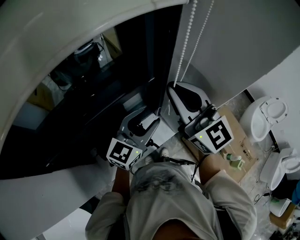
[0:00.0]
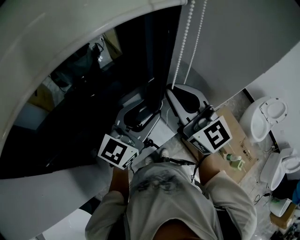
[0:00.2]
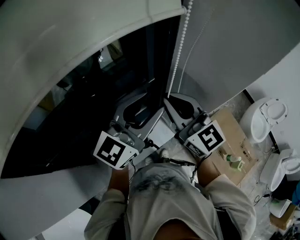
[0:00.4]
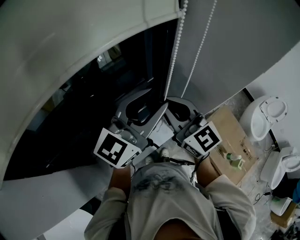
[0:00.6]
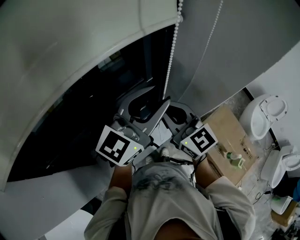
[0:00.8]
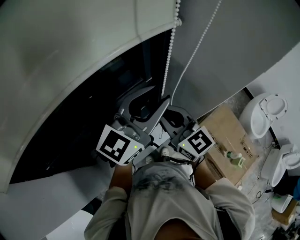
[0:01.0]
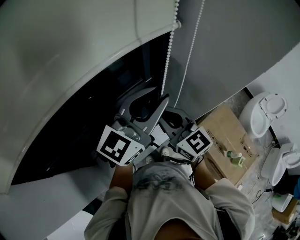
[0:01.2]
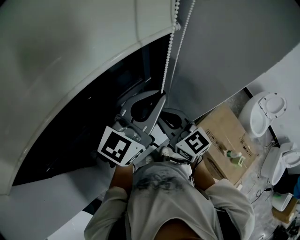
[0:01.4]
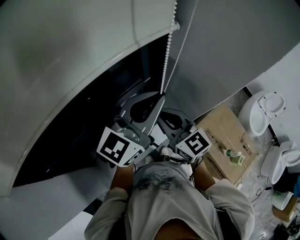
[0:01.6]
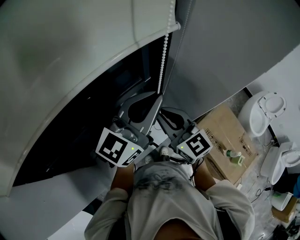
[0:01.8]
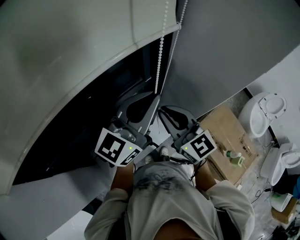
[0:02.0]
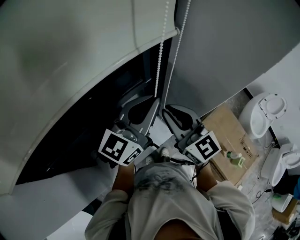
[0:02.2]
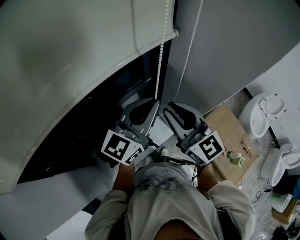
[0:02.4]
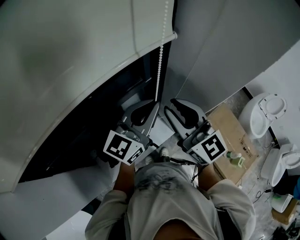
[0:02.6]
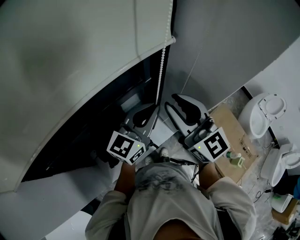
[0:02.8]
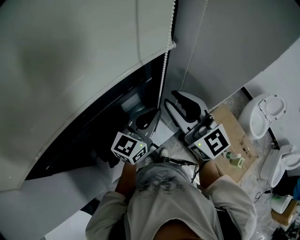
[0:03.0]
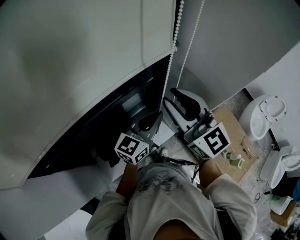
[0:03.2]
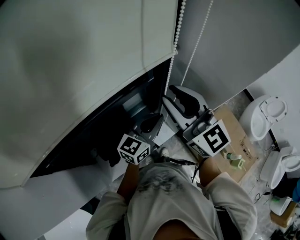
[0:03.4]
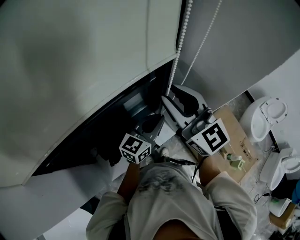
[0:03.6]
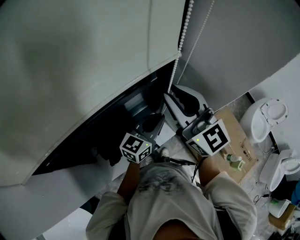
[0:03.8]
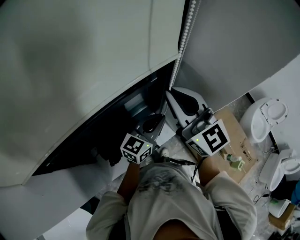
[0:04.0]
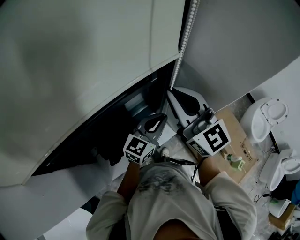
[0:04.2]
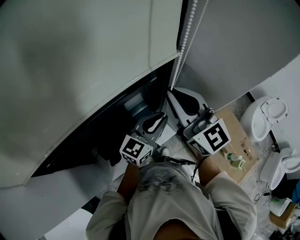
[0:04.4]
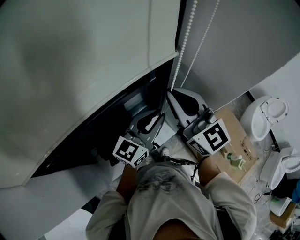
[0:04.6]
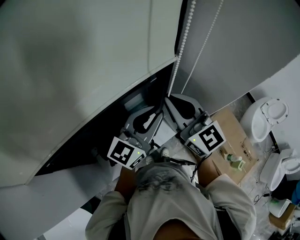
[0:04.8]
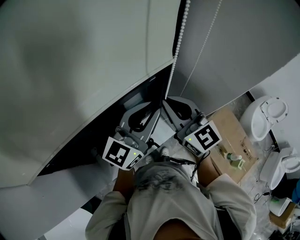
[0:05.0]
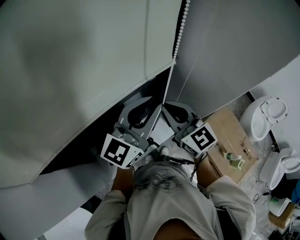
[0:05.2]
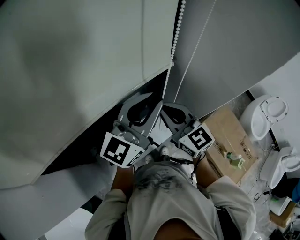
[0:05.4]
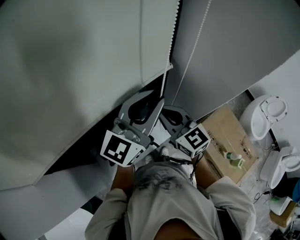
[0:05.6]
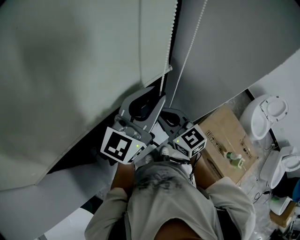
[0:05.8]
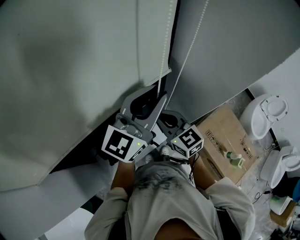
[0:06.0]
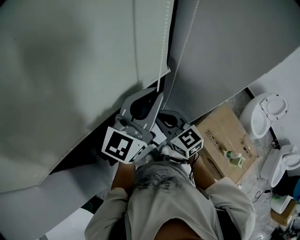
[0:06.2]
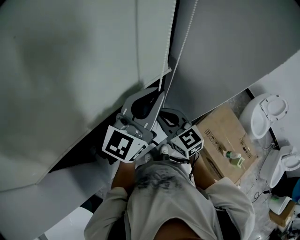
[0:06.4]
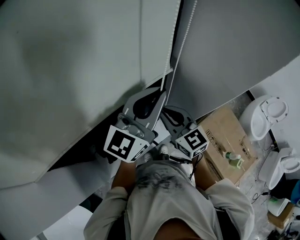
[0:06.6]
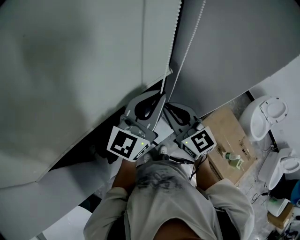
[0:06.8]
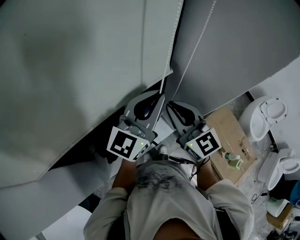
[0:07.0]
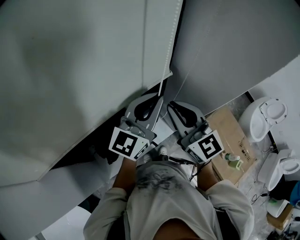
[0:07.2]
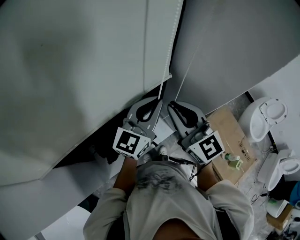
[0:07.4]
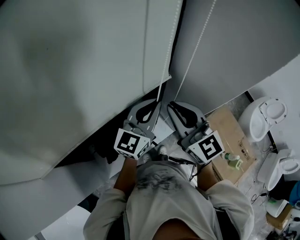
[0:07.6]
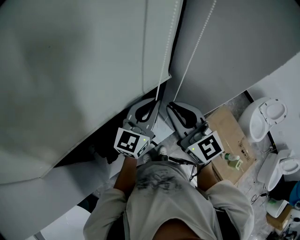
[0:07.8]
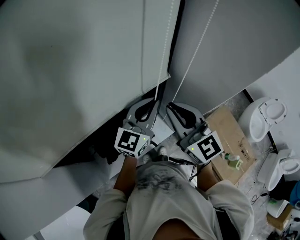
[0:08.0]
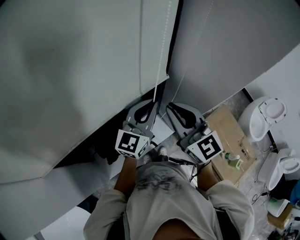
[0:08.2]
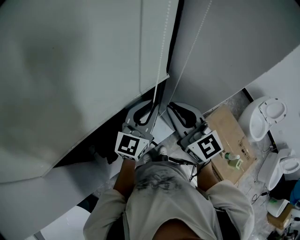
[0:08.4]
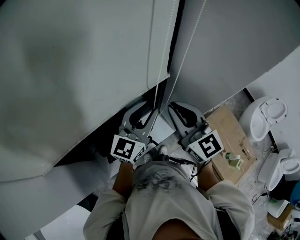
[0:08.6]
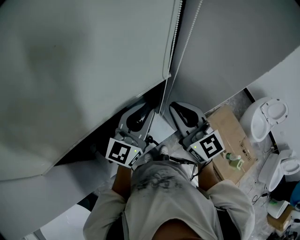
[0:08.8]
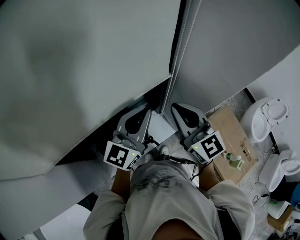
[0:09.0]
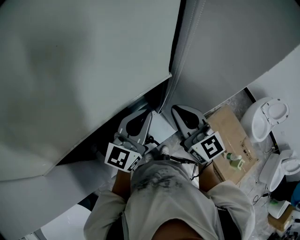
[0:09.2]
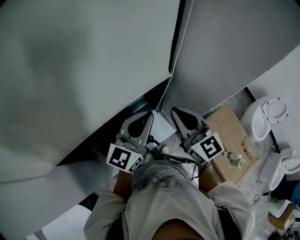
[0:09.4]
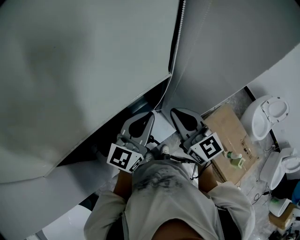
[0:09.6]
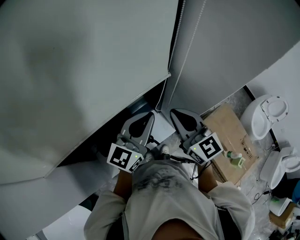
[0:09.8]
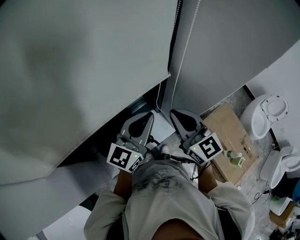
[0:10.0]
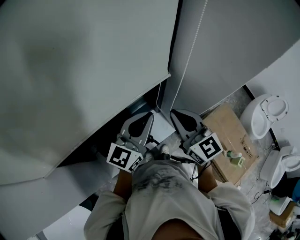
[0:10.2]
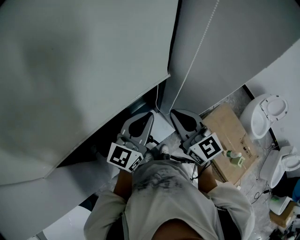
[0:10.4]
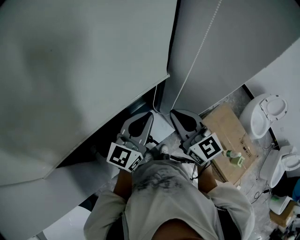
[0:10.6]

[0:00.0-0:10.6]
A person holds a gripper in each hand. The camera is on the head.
0.0 to 1.6 s: The right gripper shifts about 15 cm downward. Meanwhile the left gripper moves upward, about 15 cm, and closes up.
1.6 to 3.0 s: The left gripper is displaced downward by roughly 15 cm, while the right gripper travels upward by roughly 10 cm, and opens up.
3.0 to 4.6 s: The right gripper closes.
4.6 to 6.0 s: The left gripper moves upward, about 10 cm. The right gripper travels downward by approximately 15 cm, and swivels approximately 20 degrees.
6.0 to 7.6 s: The left gripper moves downward, roughly 10 cm; the right gripper goes approximately 10 cm upward.
7.6 to 9.0 s: The left gripper moves approximately 5 cm, and opens, then closes once more.
9.0 to 10.6 s: The grippers make only small movements.

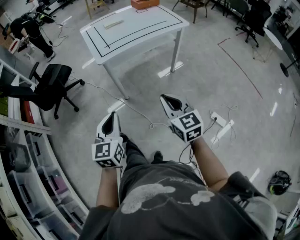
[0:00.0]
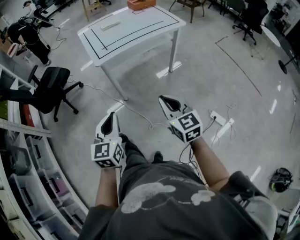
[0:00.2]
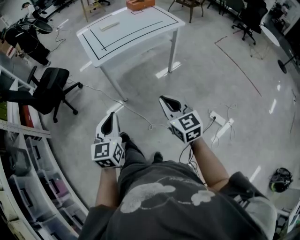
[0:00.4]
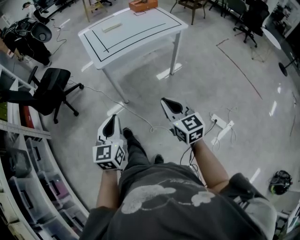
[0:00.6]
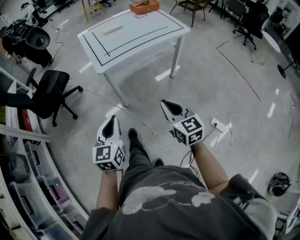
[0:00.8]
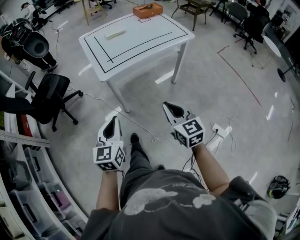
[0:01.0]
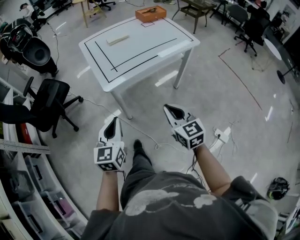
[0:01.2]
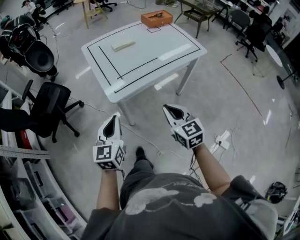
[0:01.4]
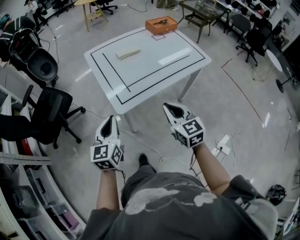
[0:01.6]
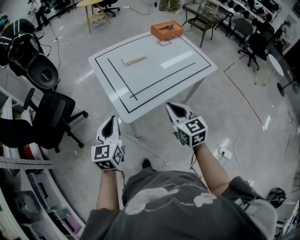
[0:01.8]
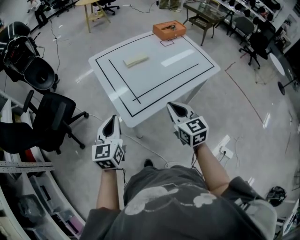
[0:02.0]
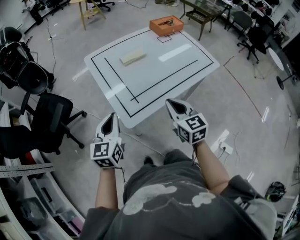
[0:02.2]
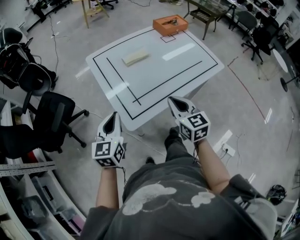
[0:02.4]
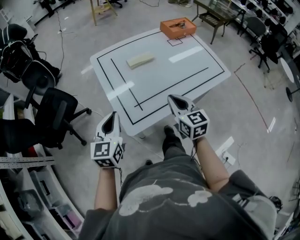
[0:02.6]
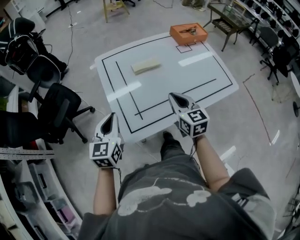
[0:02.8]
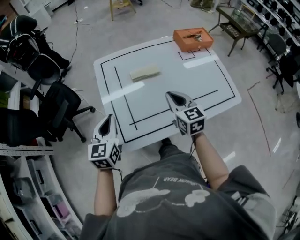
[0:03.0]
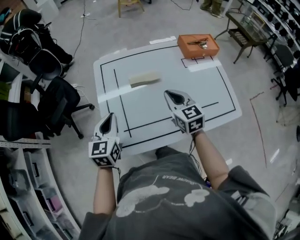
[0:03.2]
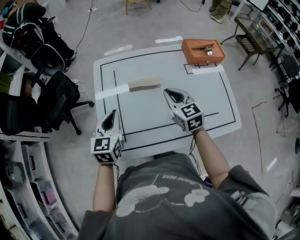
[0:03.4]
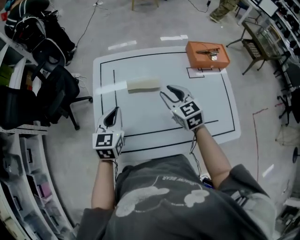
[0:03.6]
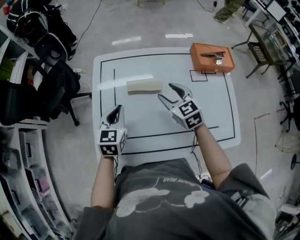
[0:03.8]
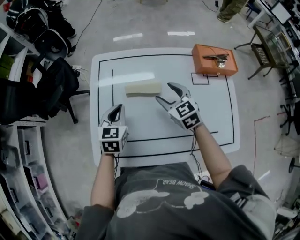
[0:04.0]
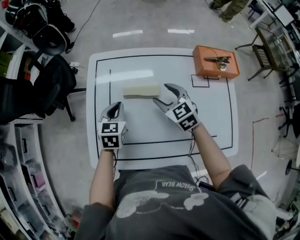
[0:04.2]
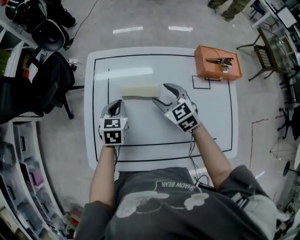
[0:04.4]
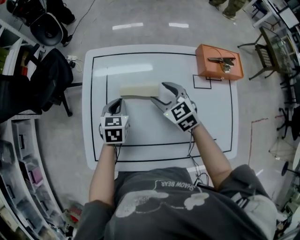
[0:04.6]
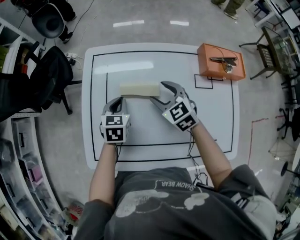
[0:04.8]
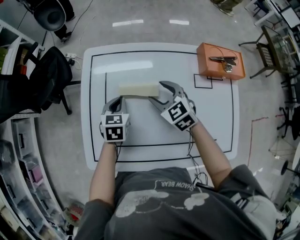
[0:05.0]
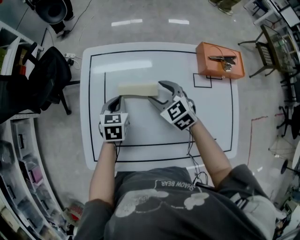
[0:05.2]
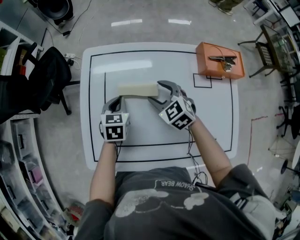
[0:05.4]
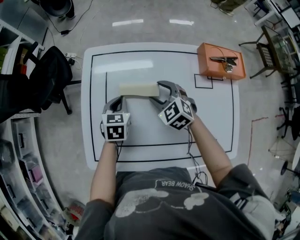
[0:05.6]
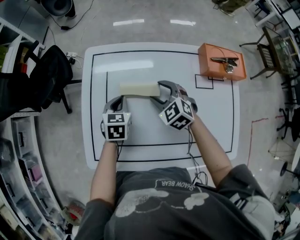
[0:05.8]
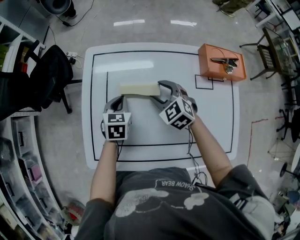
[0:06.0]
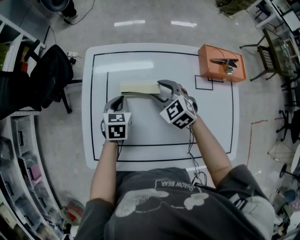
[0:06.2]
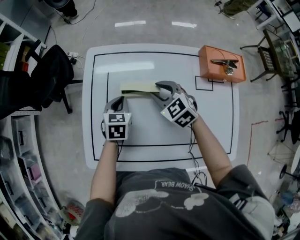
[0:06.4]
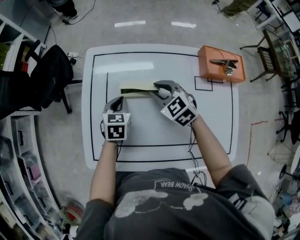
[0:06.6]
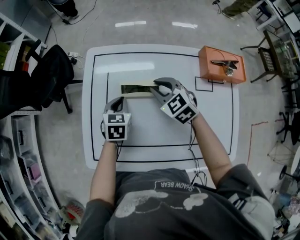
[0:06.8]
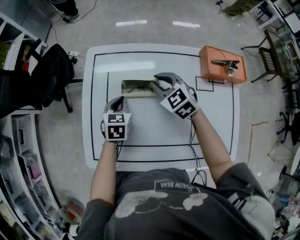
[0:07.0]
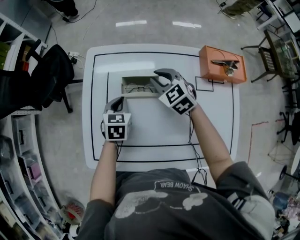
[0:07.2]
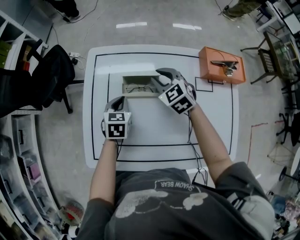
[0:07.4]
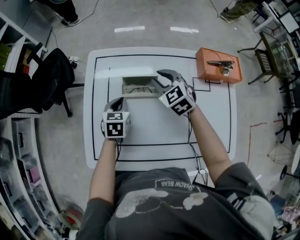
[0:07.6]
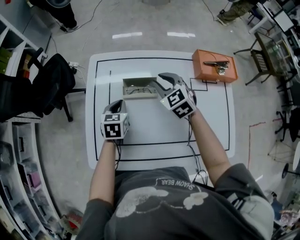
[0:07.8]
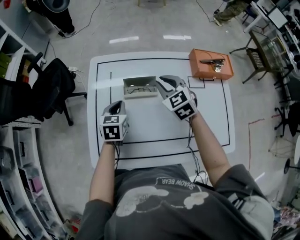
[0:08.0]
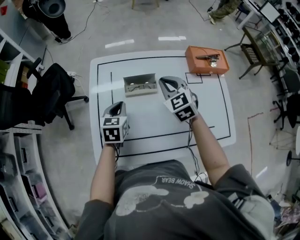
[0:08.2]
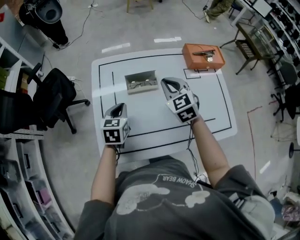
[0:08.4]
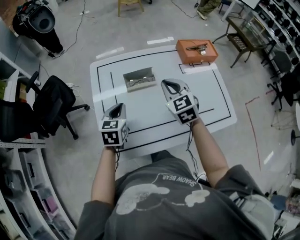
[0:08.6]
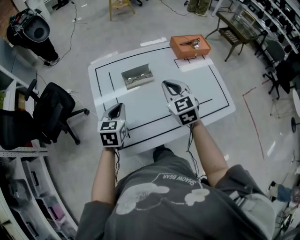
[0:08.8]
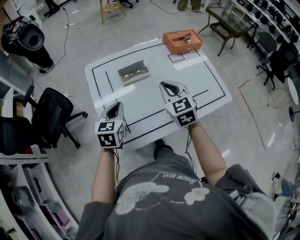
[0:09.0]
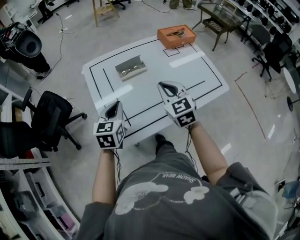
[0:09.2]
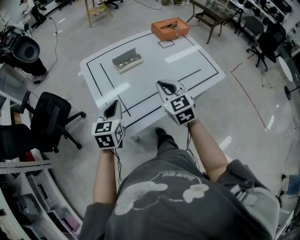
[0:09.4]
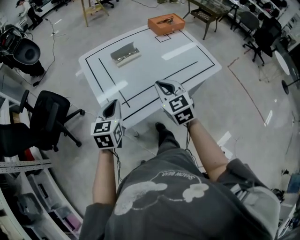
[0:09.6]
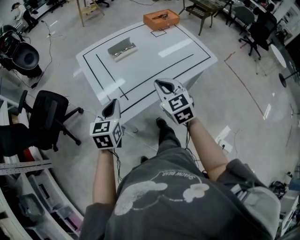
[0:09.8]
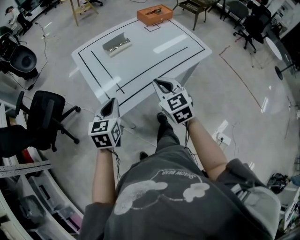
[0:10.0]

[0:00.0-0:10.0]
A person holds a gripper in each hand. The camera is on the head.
0.0 to 1.4 s: The grippers both shift forward by some 25 cm.
1.4 to 2.8 s: Both grippers move forward, roughly 30 cm.
2.8 to 4.2 s: The right gripper moves approximately 25 cm, turns by approximately 40 degrees, and opens its fingers; the left gripper changes place by approximately 25 cm, and changes its angle by about 30 degrees.
4.2 to 5.8 s: The right gripper changes place by some 5 cm, while the left gripper moves downward, roughly 5 cm.
5.8 to 7.2 s: The right gripper shifts some 5 cm forward, and closes its fingers.
7.2 to 8.6 s: The left gripper heads upward and backward, covering about 15 cm. Meanwhile the right gripper shifts roughly 20 cm backward and upward, and turns by about 30 degrees.
8.6 to 10.0 s: Both grippers travel together backward, approximately 25 cm. The left gripper rotates approximately 20 degrees.

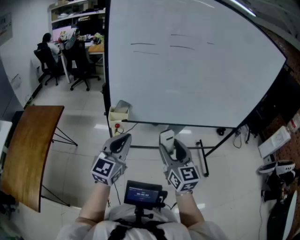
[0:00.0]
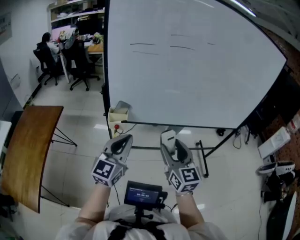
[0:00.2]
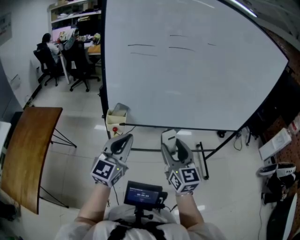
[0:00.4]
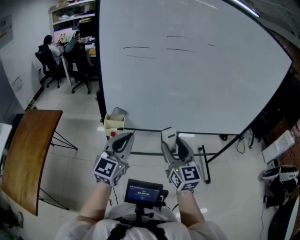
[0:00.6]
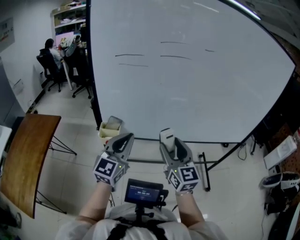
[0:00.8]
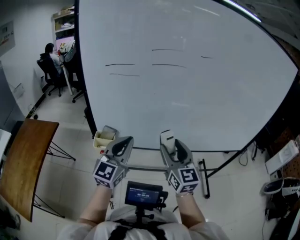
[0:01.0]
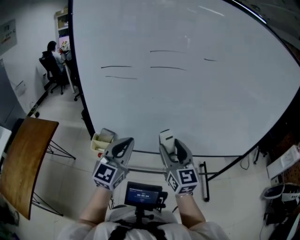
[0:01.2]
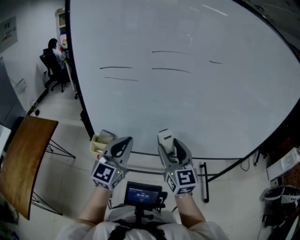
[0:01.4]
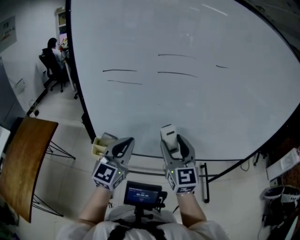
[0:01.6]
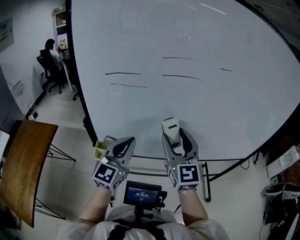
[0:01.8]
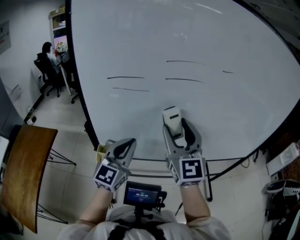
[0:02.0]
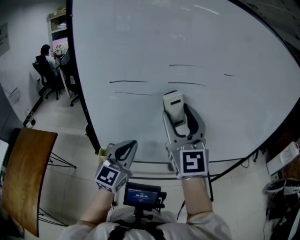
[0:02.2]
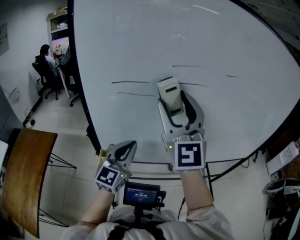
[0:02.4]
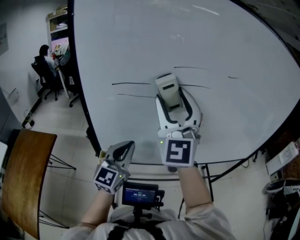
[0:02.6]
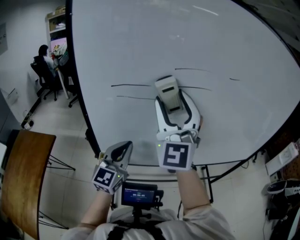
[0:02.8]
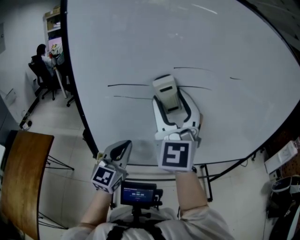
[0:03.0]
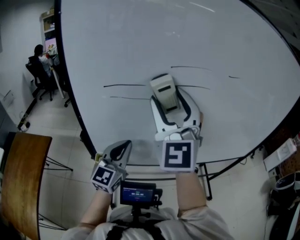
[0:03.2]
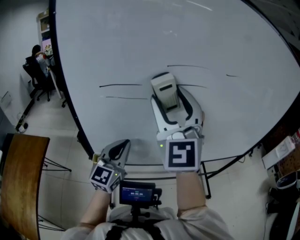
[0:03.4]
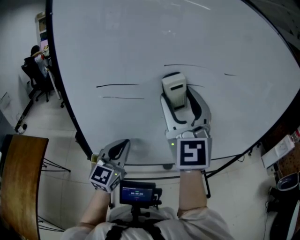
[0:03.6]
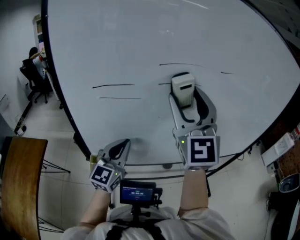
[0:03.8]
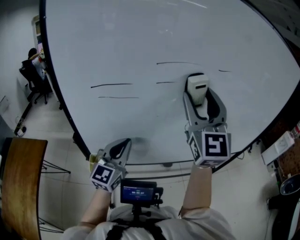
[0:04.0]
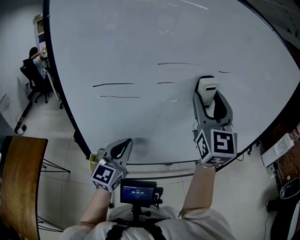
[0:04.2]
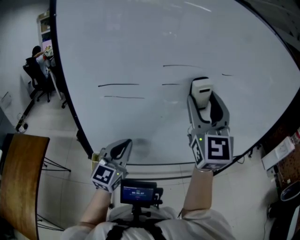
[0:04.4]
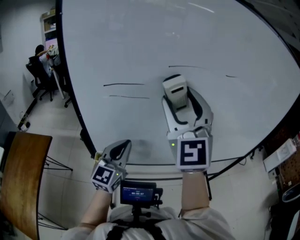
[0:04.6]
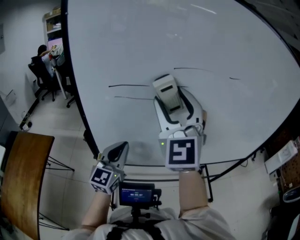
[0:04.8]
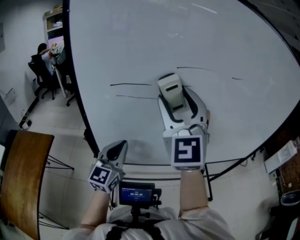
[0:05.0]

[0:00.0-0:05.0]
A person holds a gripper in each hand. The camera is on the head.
0.0 to 1.6 s: Both grippers travel together forward, roughly 20 cm.
1.6 to 3.4 s: The right gripper is displaced upward and to the left by approximately 20 cm, and swivels roughly 30 degrees, while the left gripper is displaced forward by roughly 5 cm.
3.4 to 5.0 s: The right gripper moves some 15 cm to the right and comes back.
